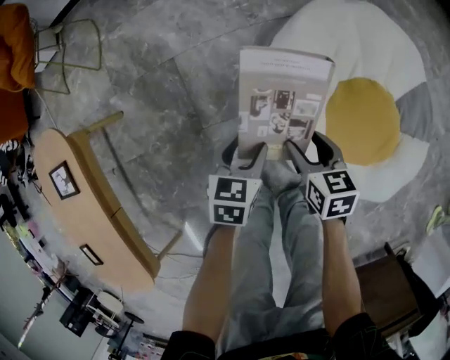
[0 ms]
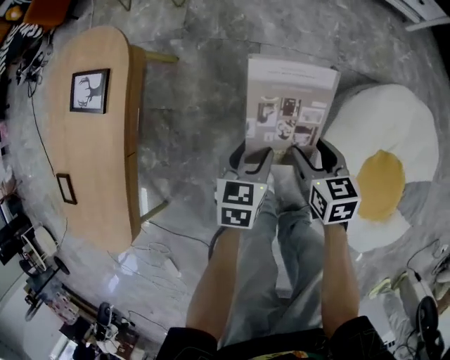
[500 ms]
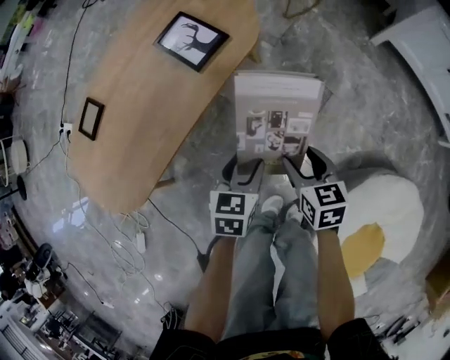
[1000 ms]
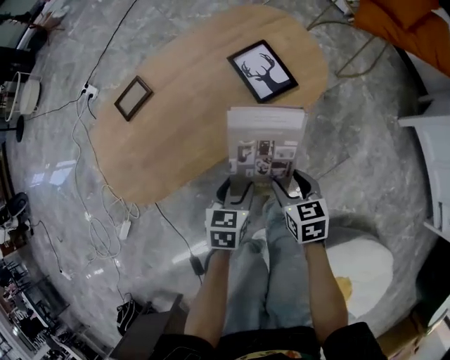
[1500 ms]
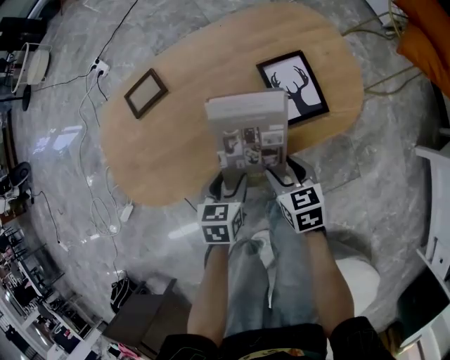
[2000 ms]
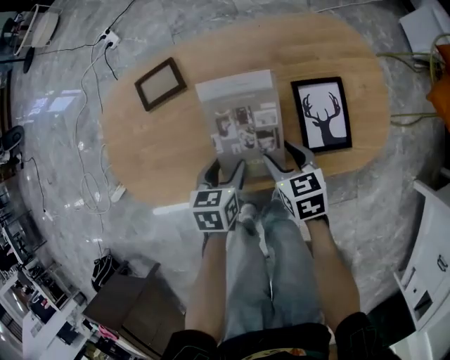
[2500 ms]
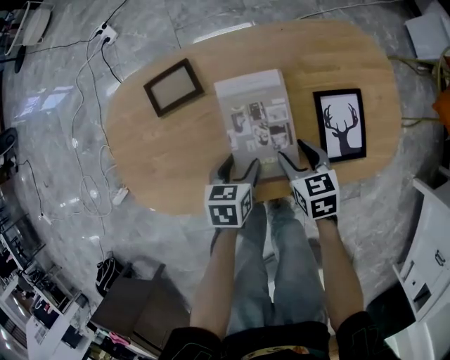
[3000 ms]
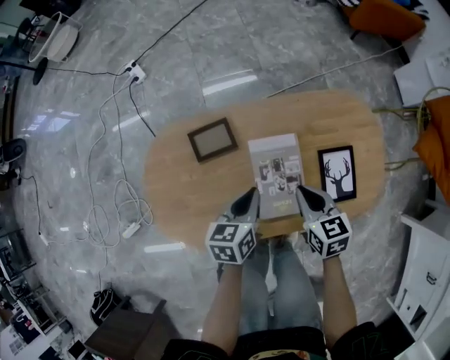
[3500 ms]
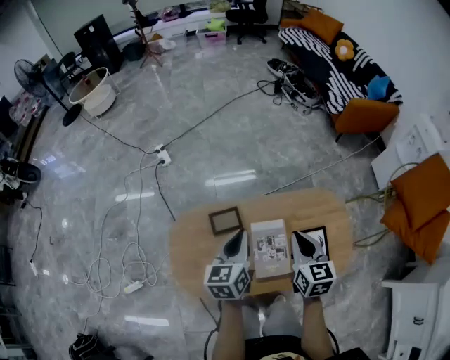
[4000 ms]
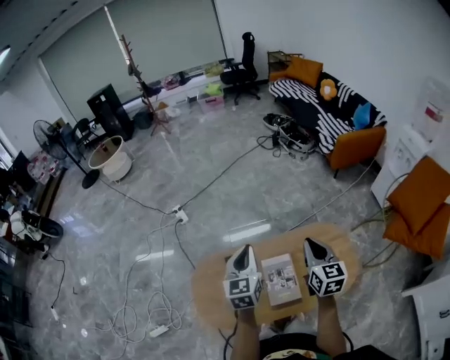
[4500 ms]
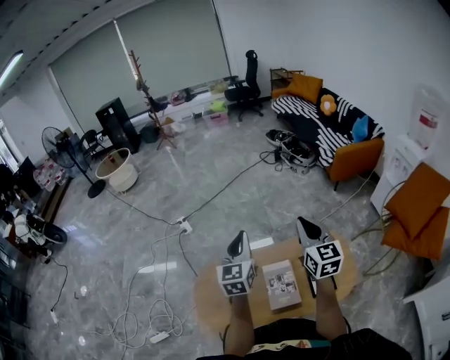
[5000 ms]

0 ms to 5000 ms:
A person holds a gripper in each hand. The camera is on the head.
0 ms to 2500 ms: The two grippers travel together, approximately 80 cm. The left gripper rotates about 100 degrees. Meanwhile the right gripper rotates some 100 degrees.
2500 ms to 5000 ms: The left gripper travels upward and forward by some 60 cm, tilts its fingers about 50 degrees upward, and closes its fingers, while the right gripper travels upward by some 50 cm, points its fingers roughly 40 degrees further upward, and closes up.

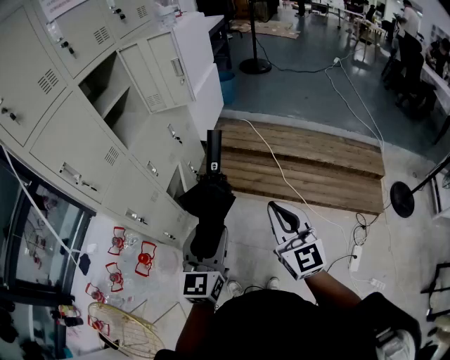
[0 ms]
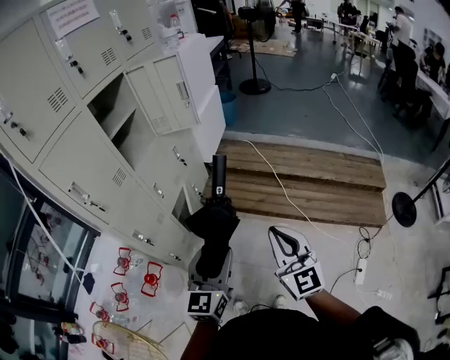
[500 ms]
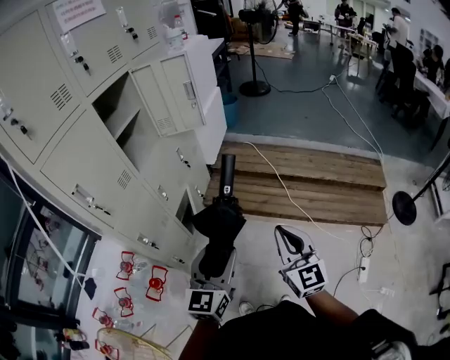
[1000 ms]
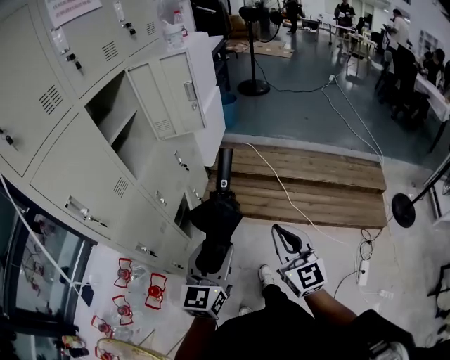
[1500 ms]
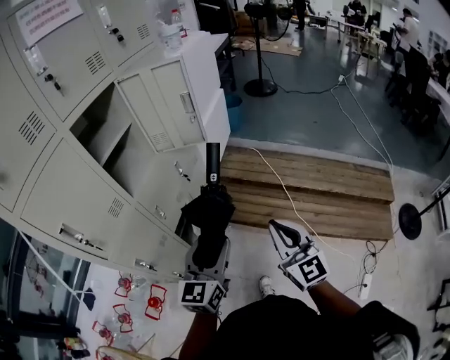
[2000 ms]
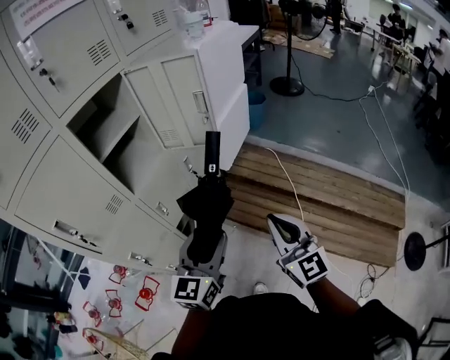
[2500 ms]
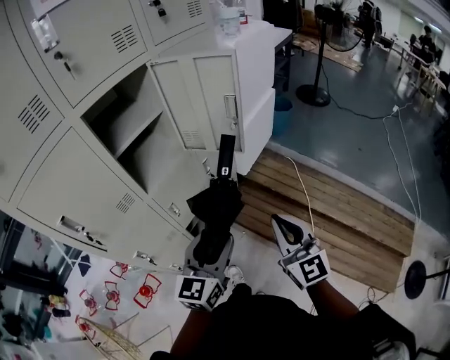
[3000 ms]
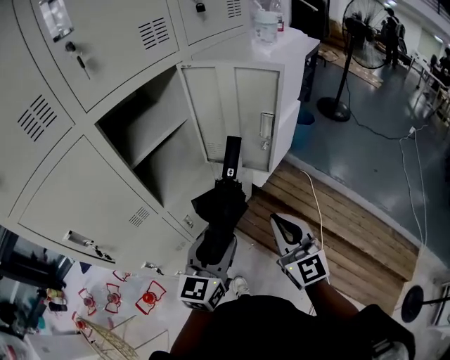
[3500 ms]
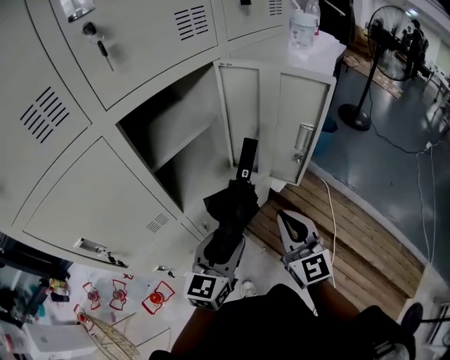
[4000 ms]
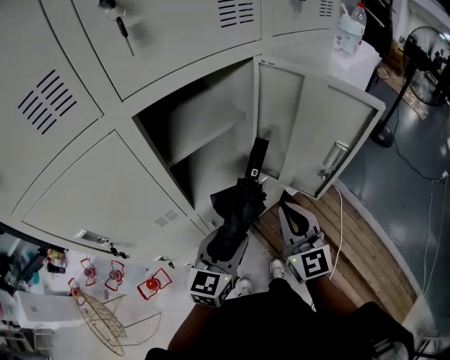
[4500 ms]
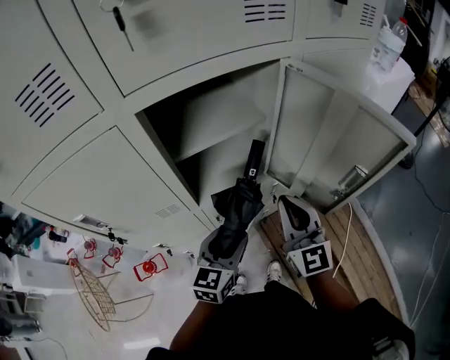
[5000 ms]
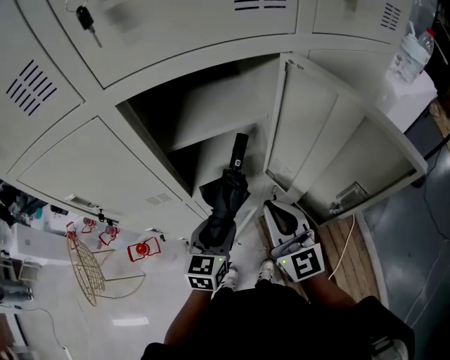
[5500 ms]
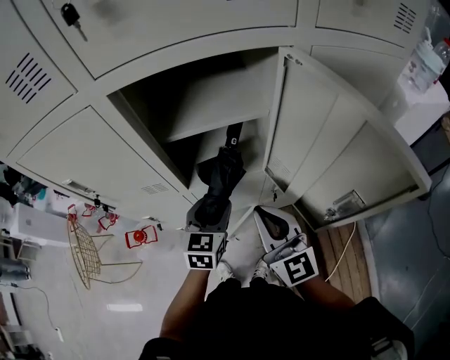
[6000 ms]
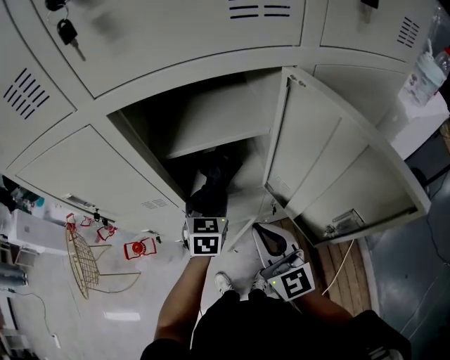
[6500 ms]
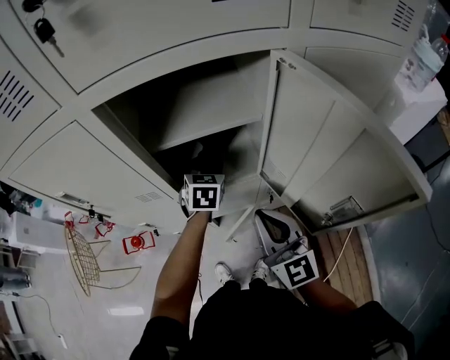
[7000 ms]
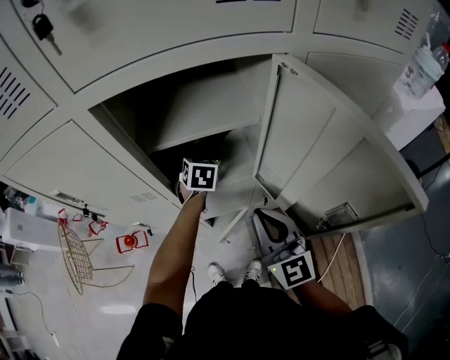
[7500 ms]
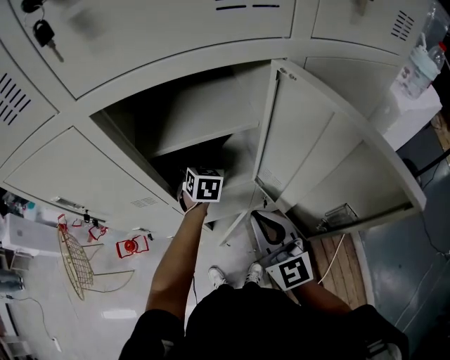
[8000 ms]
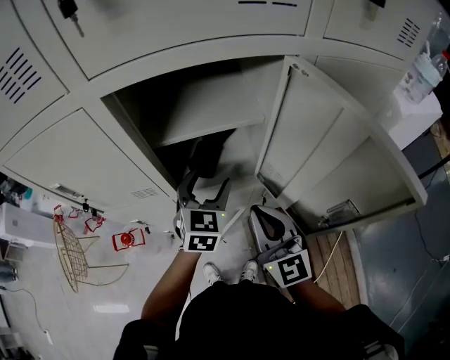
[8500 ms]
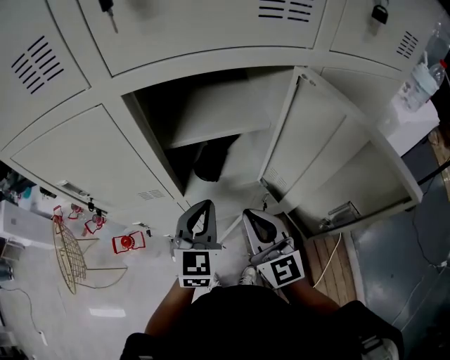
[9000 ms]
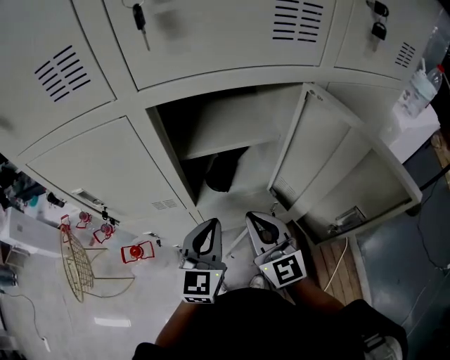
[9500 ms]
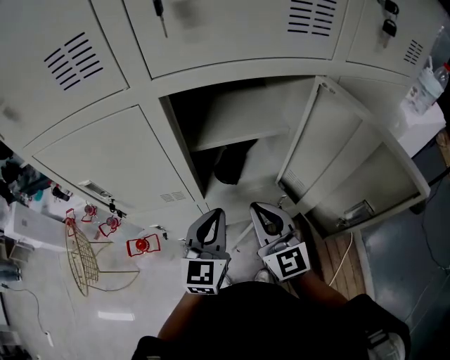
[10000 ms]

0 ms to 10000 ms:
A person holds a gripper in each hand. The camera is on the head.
0 ms to 2000 ms: The grippers both shift forward by about 20 cm.
2000 ms to 4000 ms: Both grippers travel together forward, roughly 30 cm. The right gripper rotates roughly 20 degrees.
4000 ms to 6000 ms: The right gripper ends up roughly 15 cm from where it was, and rotates about 40 degrees. The left gripper ends up approximately 15 cm from where it was, and rotates some 40 degrees.
6000 ms to 8000 ms: The left gripper travels forward by roughly 20 cm, rotates approximately 20 degrees, and opens its fingers.
8000 ms to 10000 ms: The left gripper travels backward and upward by roughly 25 cm, rotates approximately 30 degrees, and closes up. Meanwhile the right gripper heads to the left, covering about 5 cm.

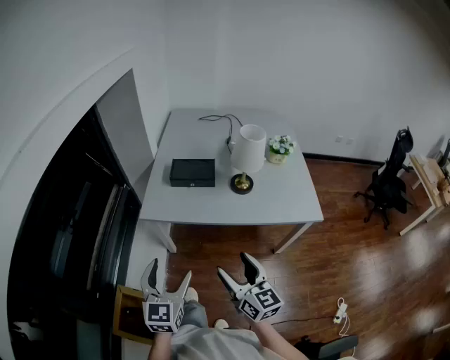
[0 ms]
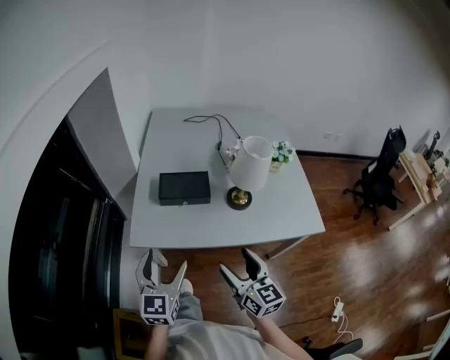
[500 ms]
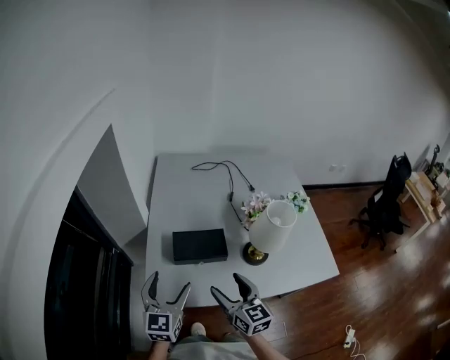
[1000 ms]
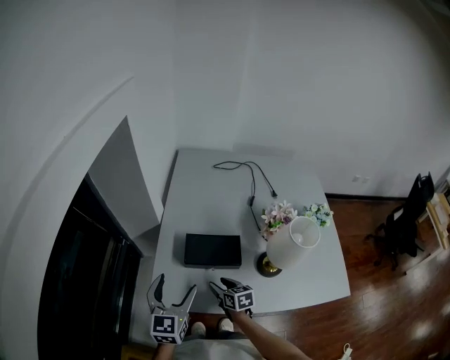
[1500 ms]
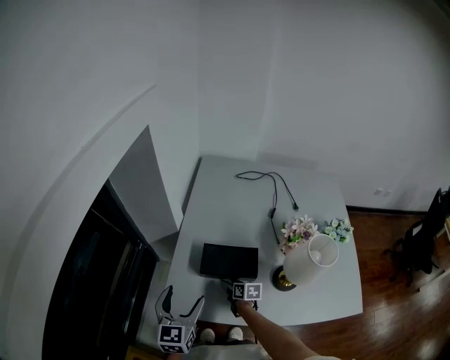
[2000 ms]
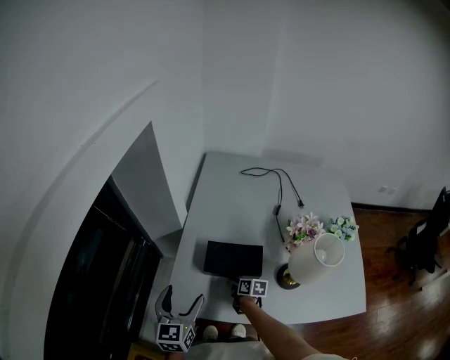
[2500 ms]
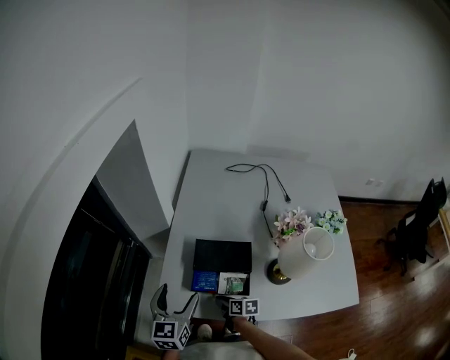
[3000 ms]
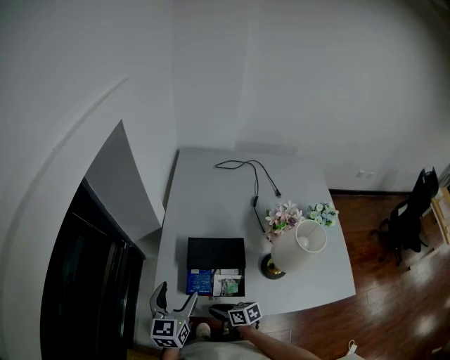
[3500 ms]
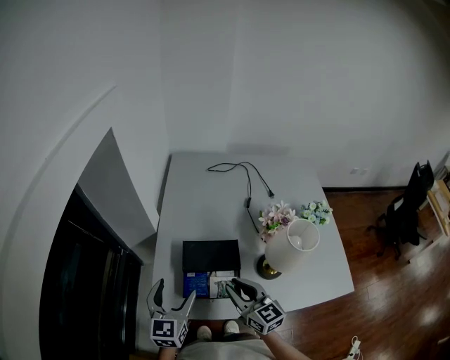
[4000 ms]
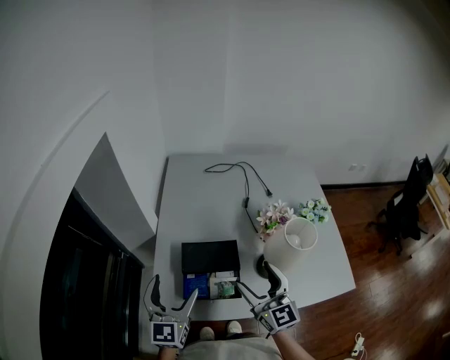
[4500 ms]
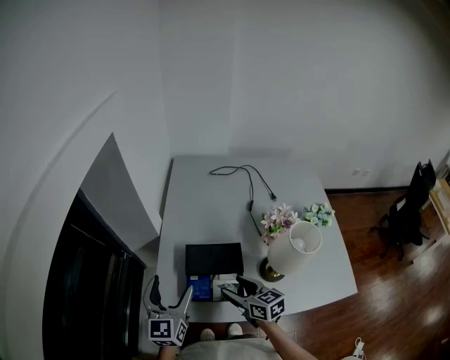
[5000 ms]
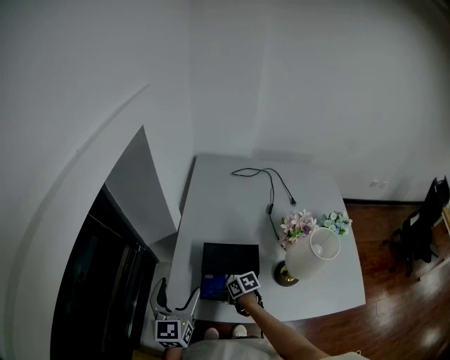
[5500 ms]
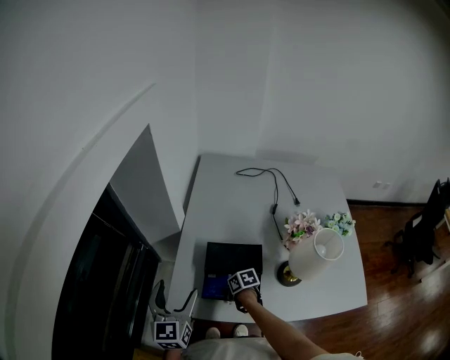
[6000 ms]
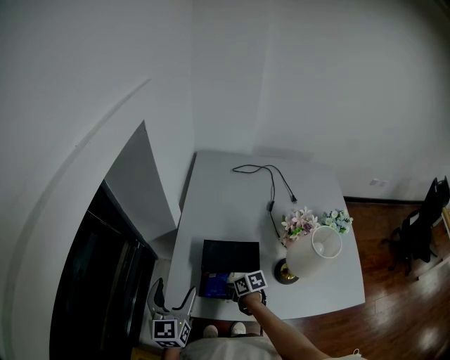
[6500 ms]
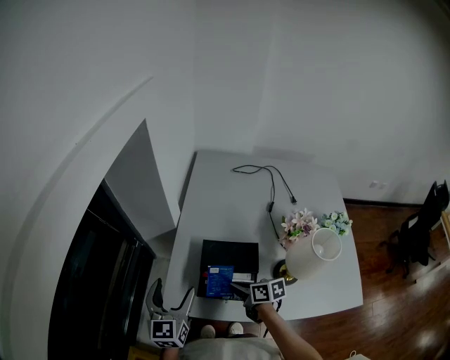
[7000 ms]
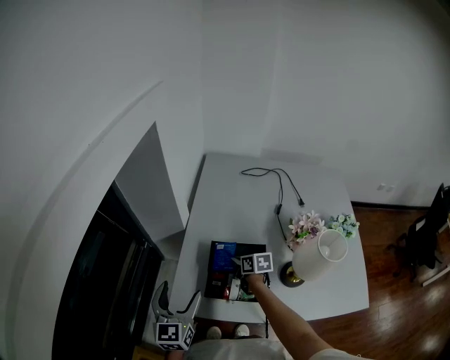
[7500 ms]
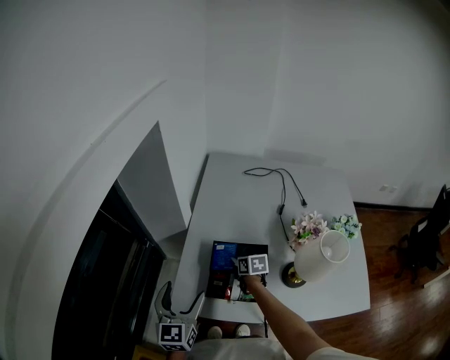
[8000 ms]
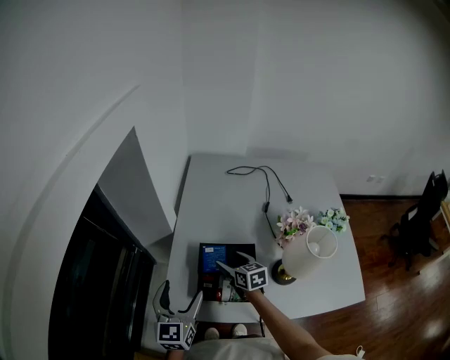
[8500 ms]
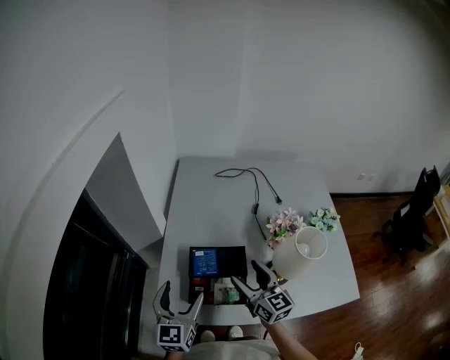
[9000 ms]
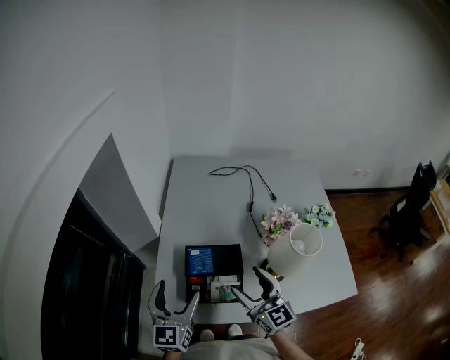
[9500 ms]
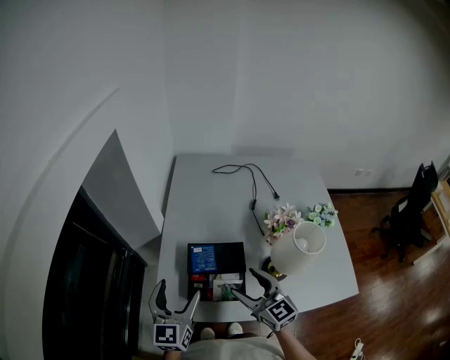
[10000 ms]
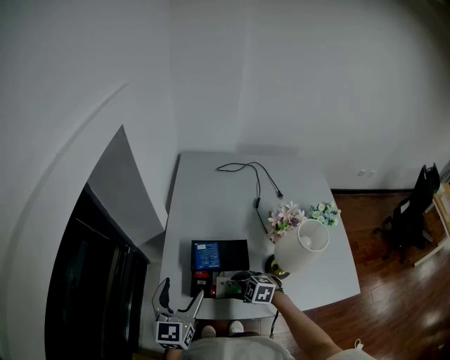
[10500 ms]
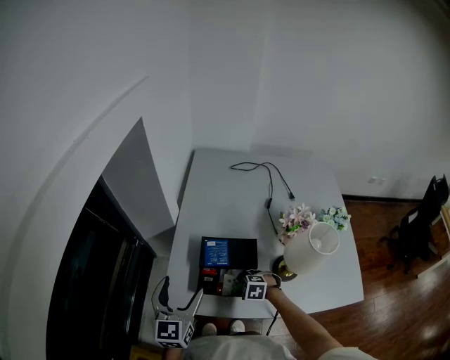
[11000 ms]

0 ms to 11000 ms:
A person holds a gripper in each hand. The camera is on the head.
0 ms to 2000 ms: The right gripper travels forward and downward by some 60 cm, tips its fingers downward by about 40 degrees, and closes, while the left gripper goes about 40 cm forward.
2000 ms to 3500 ms: The right gripper travels backward and to the left by roughly 15 cm, and swivels about 20 degrees.
3500 ms to 5500 ms: The left gripper ends up roughly 5 cm from where it was, while the right gripper travels upward and back again, some 30 cm each way, turns by approximately 20 degrees, and opens its fingers.
5500 ms to 7500 ms: The right gripper moves forward, to the right and upward, approximately 15 cm, swivels about 20 degrees, and closes up.
7500 ms to 9000 ms: The right gripper heads upward and backward, covering about 20 cm, tips its fingers upward by approximately 40 degrees, and opens its fingers, while the left gripper shifts approximately 5 cm to the right.
9000 ms to 11000 ms: The right gripper is displaced downward by about 25 cm, and angles its fingers downward, by roughly 70 degrees.
